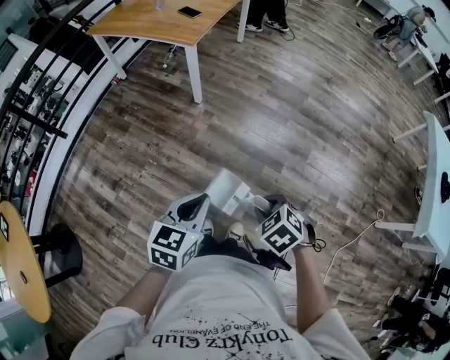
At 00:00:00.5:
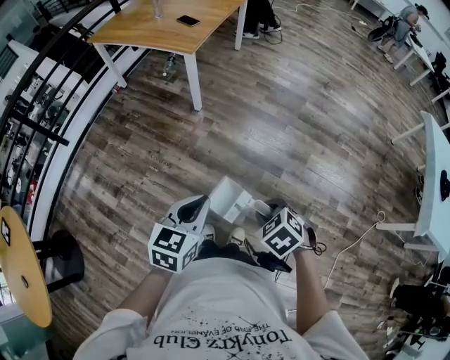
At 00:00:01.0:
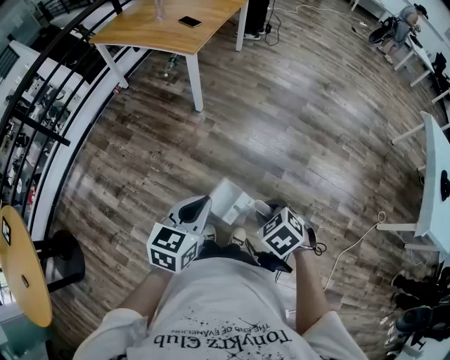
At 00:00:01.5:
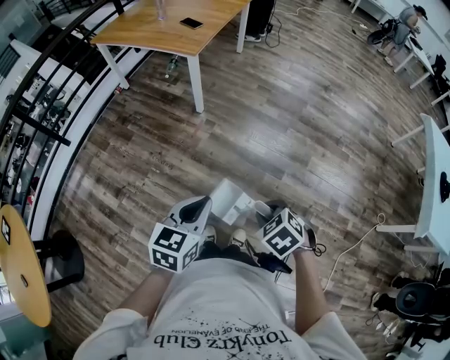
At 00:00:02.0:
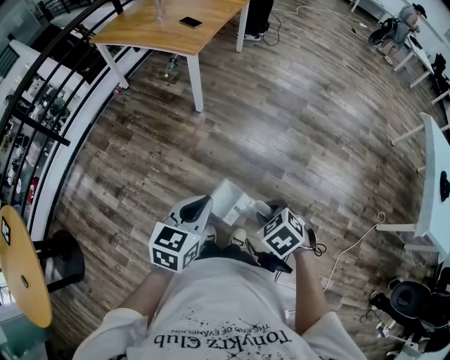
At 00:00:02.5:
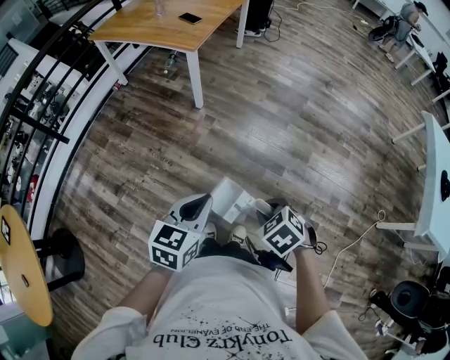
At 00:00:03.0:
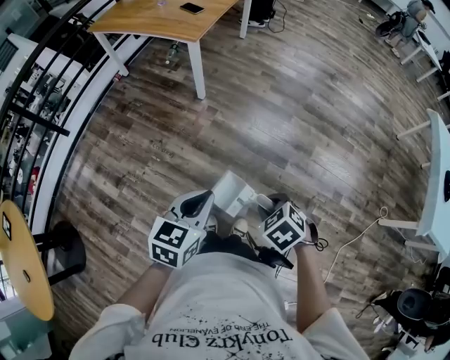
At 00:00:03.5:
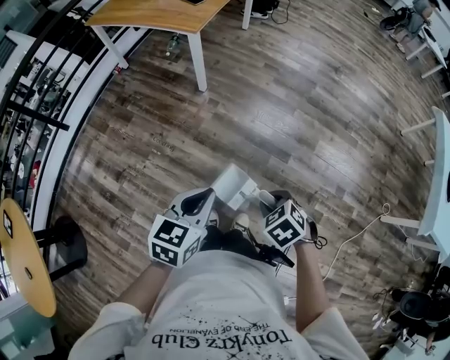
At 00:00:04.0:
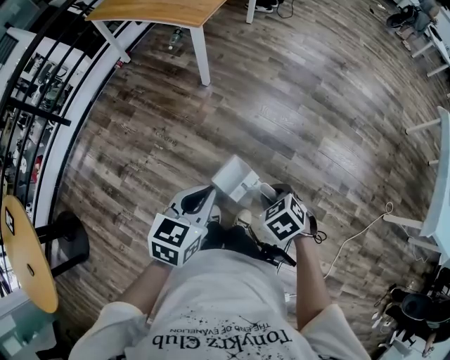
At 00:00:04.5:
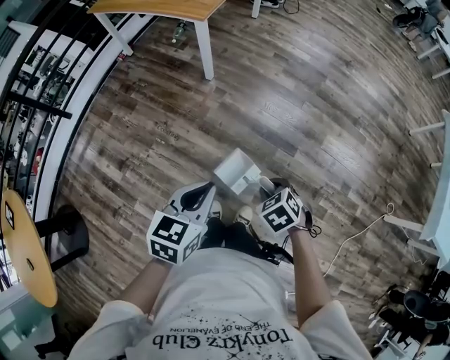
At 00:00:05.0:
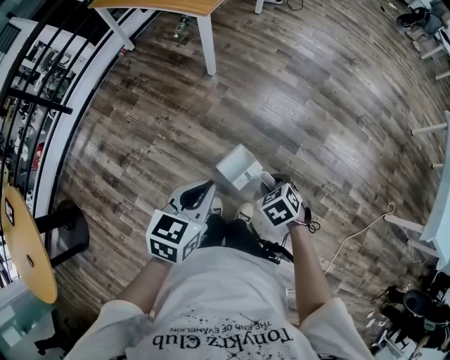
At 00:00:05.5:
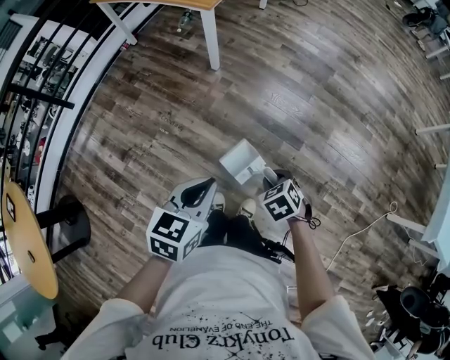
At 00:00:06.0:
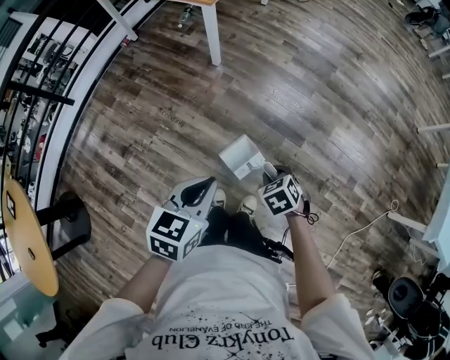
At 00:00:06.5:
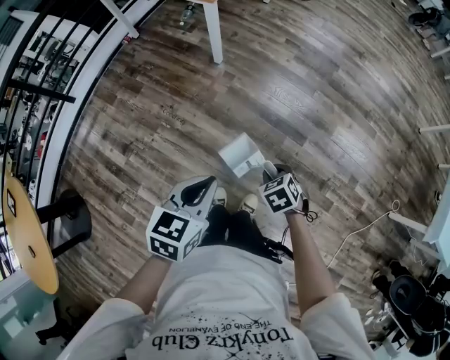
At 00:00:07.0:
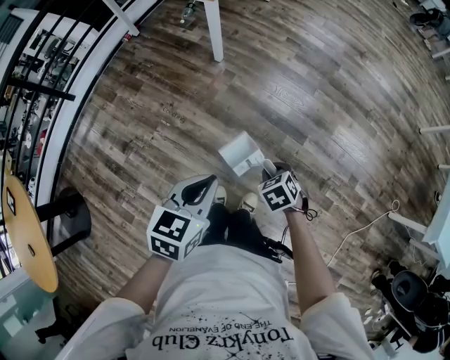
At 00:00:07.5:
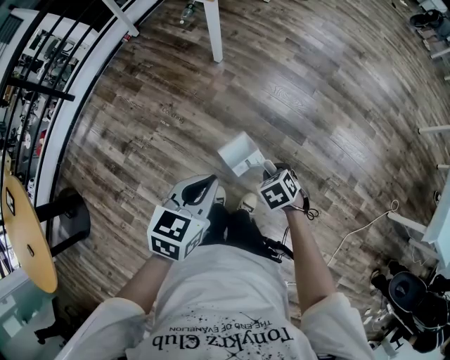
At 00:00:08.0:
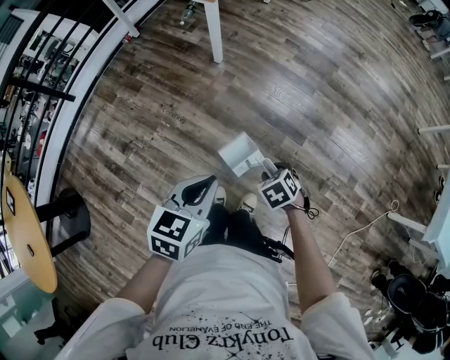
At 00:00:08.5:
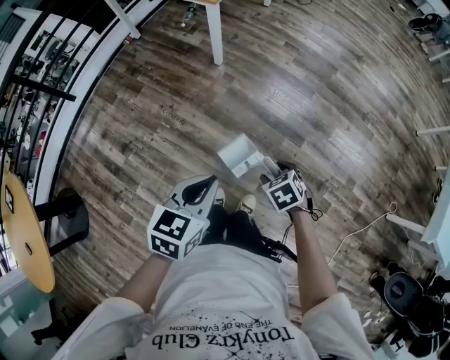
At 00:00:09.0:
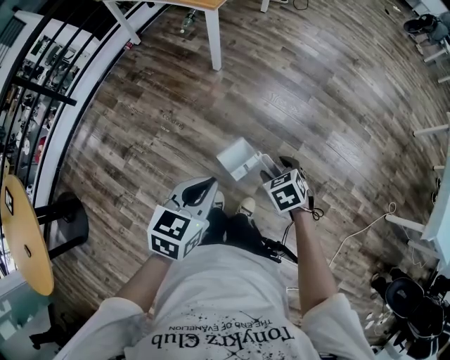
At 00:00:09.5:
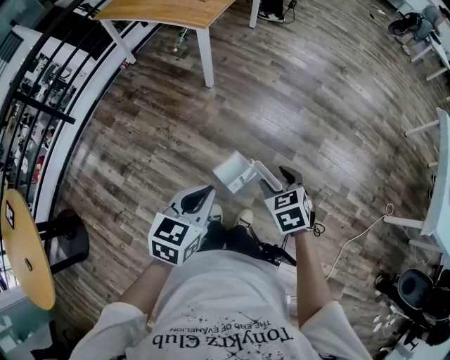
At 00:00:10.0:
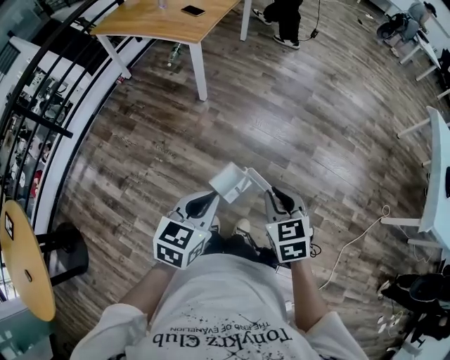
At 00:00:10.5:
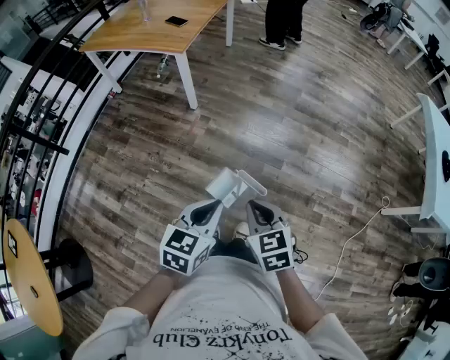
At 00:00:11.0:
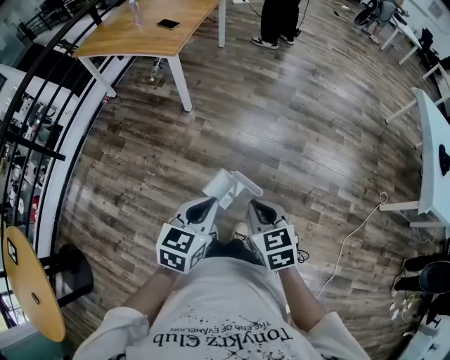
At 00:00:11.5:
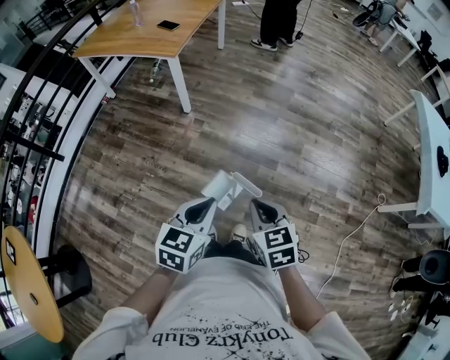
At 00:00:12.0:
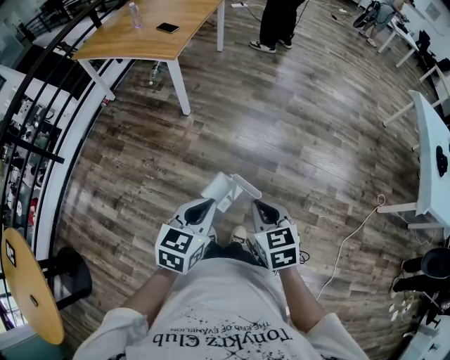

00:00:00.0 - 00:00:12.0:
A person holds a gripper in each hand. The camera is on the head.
00:00:00.0 - 00:00:02.0: The grippers stay close to where they were, moving slightly.
00:00:02.0 - 00:00:04.0: The right gripper goes approximately 5 cm downward.
00:00:04.0 - 00:00:06.0: The right gripper shifts approximately 10 cm downward.
00:00:06.0 - 00:00:08.0: There are only small adjustments of the grippers.
00:00:08.0 - 00:00:10.0: The left gripper moves upward, approximately 5 cm. Meanwhile the right gripper goes some 20 cm upward, tips its fingers upward by some 30 degrees, and opens and closes again.
00:00:10.0 - 00:00:12.0: There are only small adjustments of the grippers.

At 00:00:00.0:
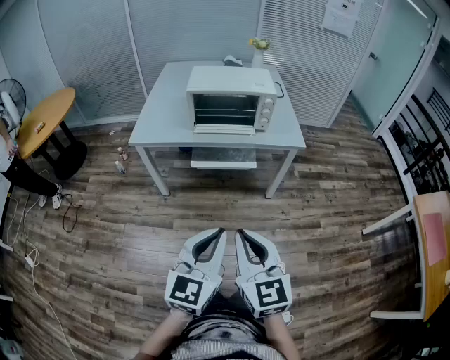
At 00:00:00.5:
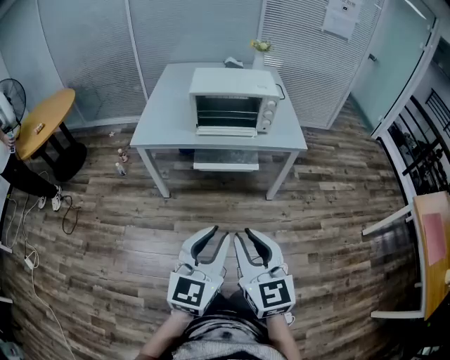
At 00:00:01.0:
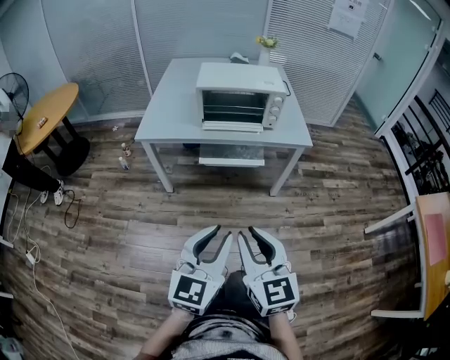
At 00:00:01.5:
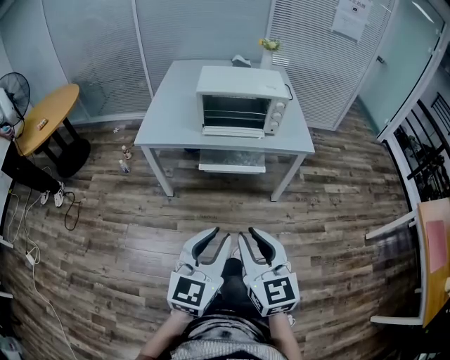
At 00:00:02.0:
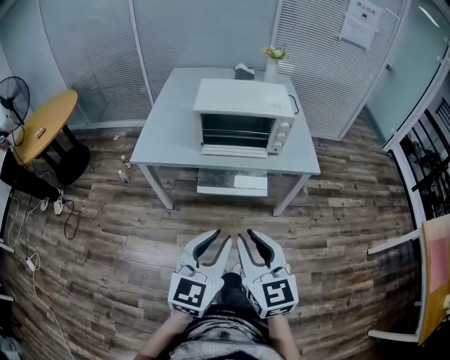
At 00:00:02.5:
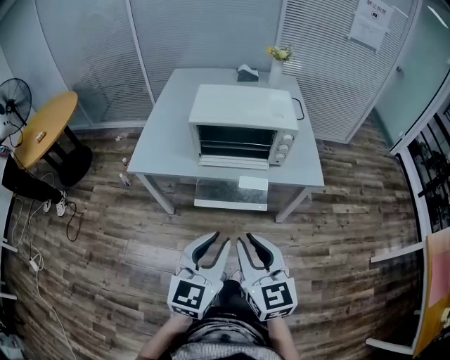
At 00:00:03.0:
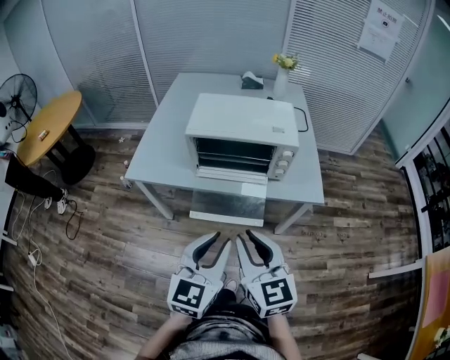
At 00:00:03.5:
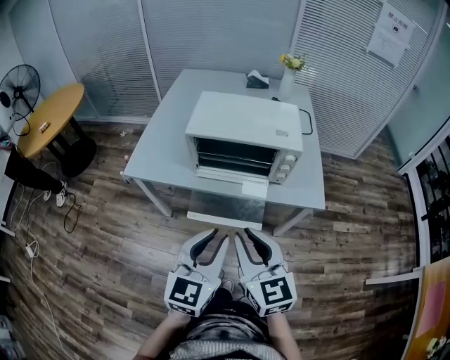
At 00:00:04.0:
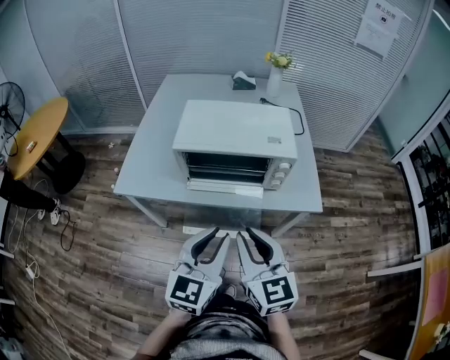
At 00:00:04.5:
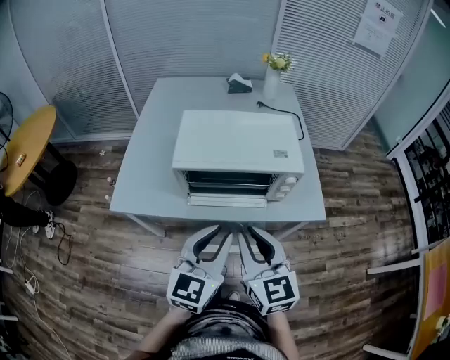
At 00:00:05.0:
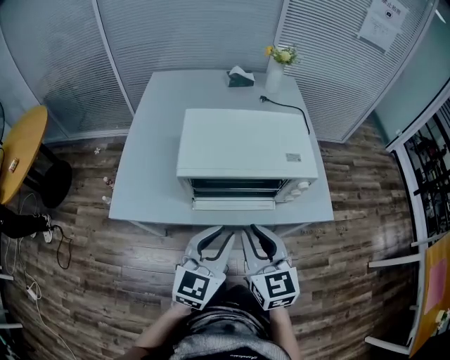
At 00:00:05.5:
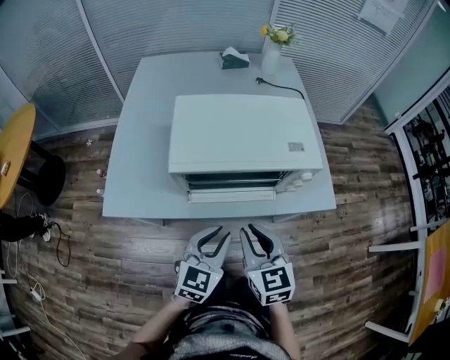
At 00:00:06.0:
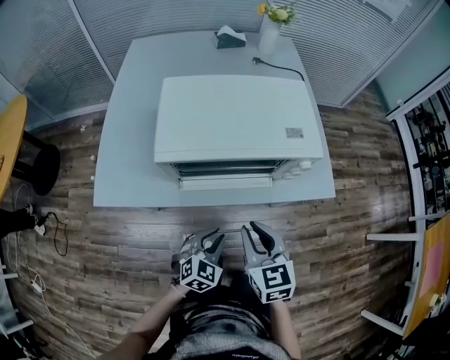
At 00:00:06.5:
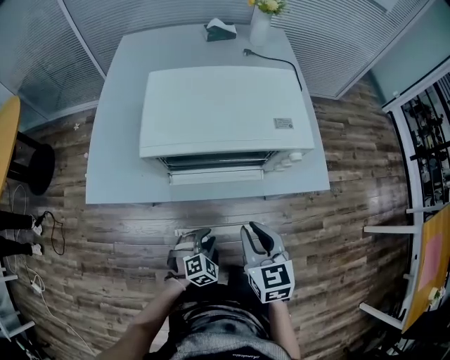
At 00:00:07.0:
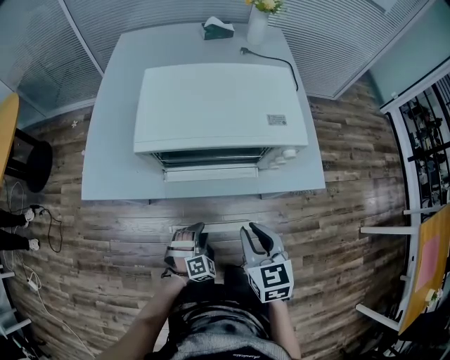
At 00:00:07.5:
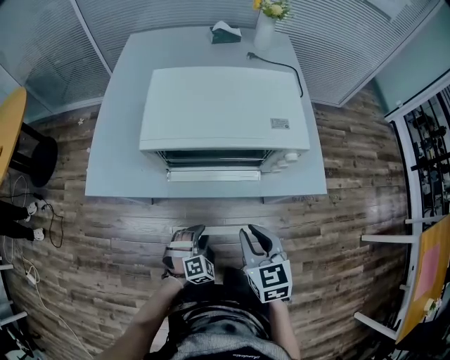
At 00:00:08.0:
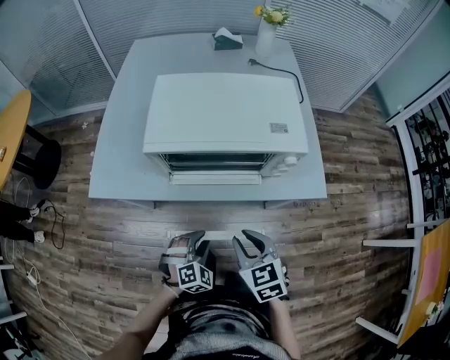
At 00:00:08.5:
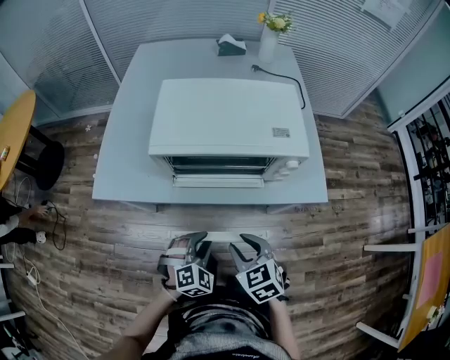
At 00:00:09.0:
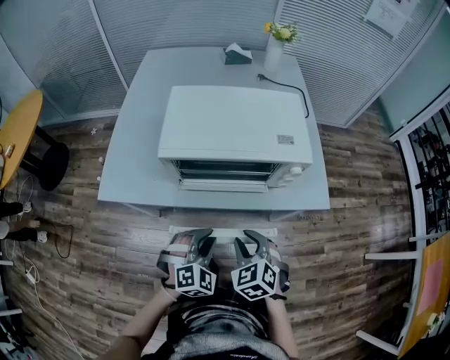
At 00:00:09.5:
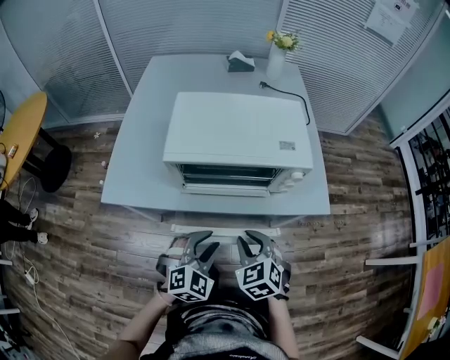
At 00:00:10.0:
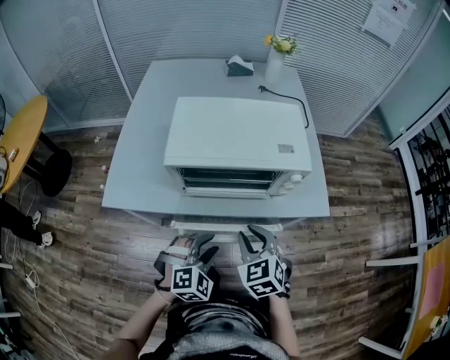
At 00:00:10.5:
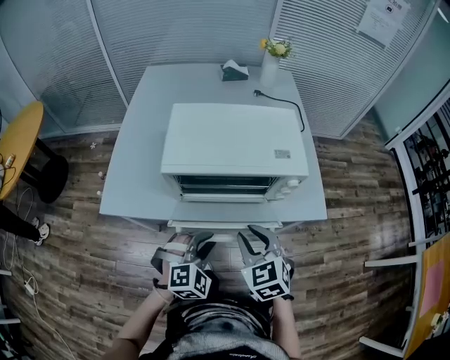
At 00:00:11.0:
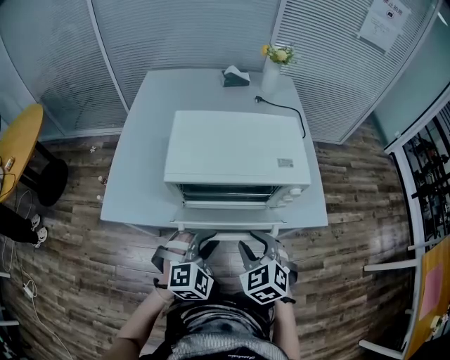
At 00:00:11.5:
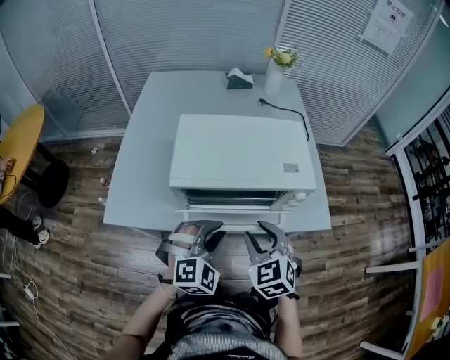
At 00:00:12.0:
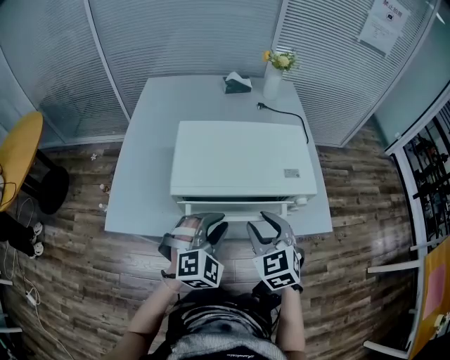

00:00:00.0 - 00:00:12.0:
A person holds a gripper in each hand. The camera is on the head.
00:00:00.0 - 00:00:02.0: Both grippers travel together forward, about 15 cm.
00:00:02.0 - 00:00:04.0: The two grippers go about 20 cm forward.
00:00:04.0 - 00:00:06.0: The left gripper is displaced downward by about 25 cm, and angles its fingers downward, by some 30 degrees. The right gripper travels downward and forward by approximately 20 cm, and turns by approximately 20 degrees.
00:00:06.0 - 00:00:08.0: The right gripper ends up roughly 5 cm from where it was. The left gripper travels downward and back again, about 10 cm each way, and changes its angle by approximately 30 degrees.
00:00:08.0 - 00:00:10.0: The right gripper shifts by roughly 5 cm. The left gripper shifts roughly 10 cm upward.
00:00:10.0 - 00:00:12.0: Both grippers move forward and upward, approximately 15 cm.

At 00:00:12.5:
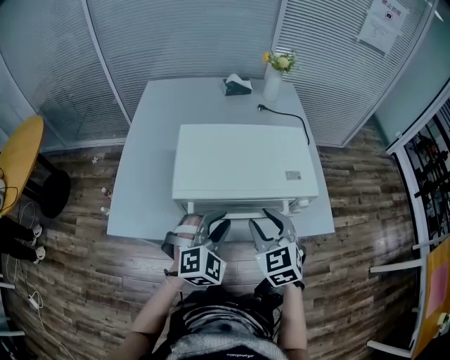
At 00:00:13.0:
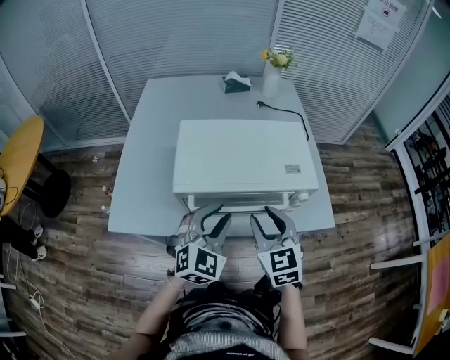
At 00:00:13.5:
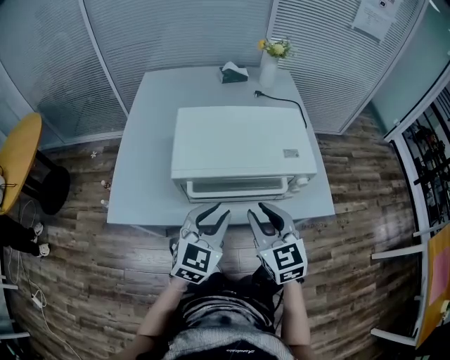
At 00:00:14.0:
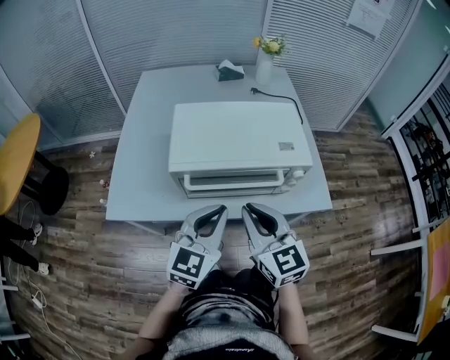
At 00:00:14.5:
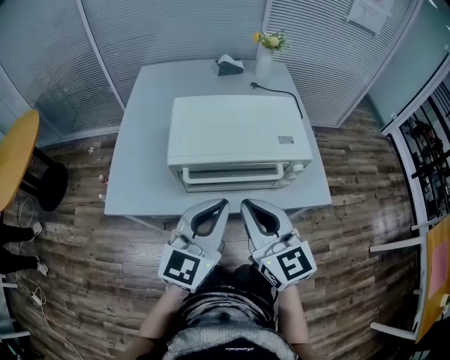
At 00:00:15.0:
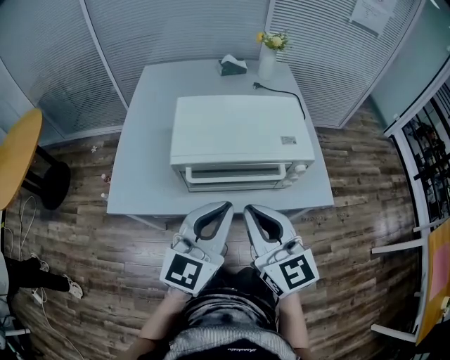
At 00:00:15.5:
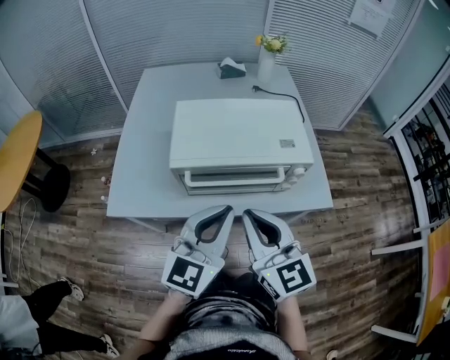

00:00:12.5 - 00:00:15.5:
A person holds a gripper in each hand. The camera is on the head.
00:00:12.5 - 00:00:14.0: The two grippers go about 10 cm backward and upward. The right gripper changes its angle by approximately 30 degrees, and closes its fingers, while the left gripper turns by approximately 40 degrees, and closes.
00:00:14.0 - 00:00:15.5: The left gripper heads upward, covering about 5 cm, while the right gripper shifts by approximately 5 cm.
